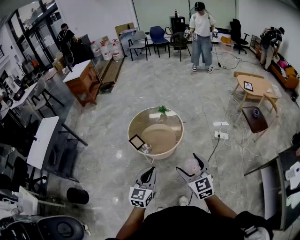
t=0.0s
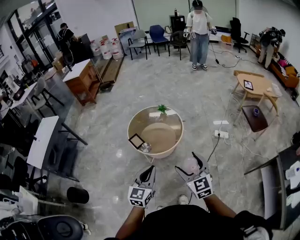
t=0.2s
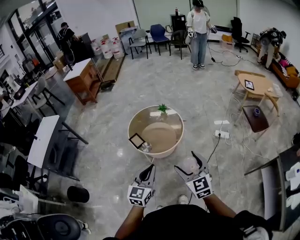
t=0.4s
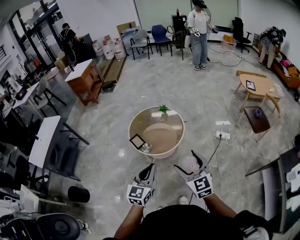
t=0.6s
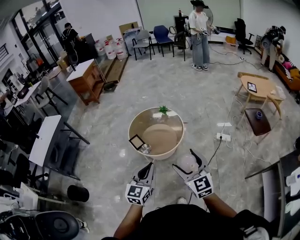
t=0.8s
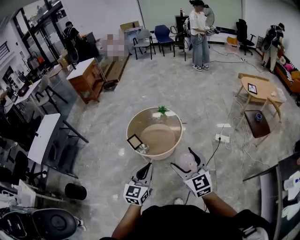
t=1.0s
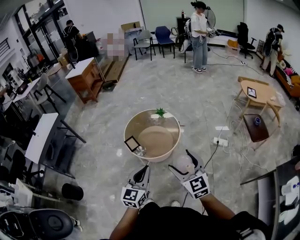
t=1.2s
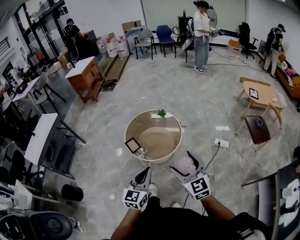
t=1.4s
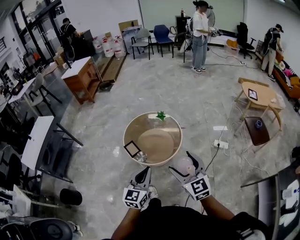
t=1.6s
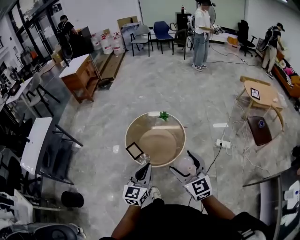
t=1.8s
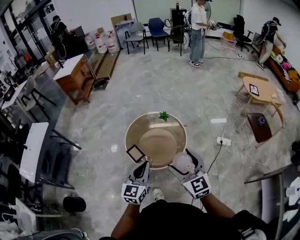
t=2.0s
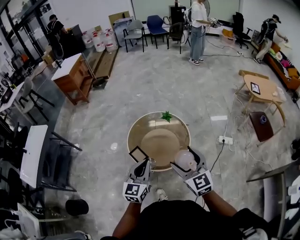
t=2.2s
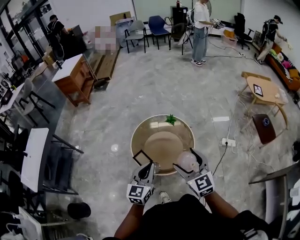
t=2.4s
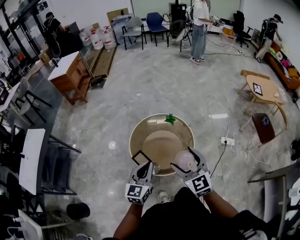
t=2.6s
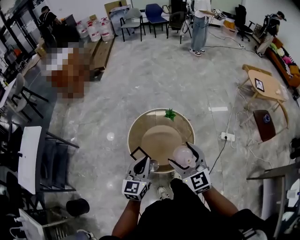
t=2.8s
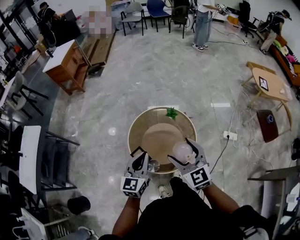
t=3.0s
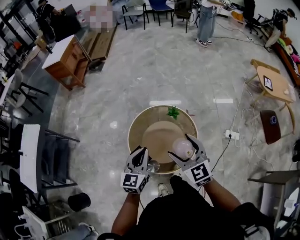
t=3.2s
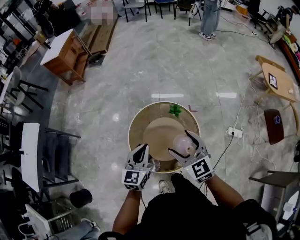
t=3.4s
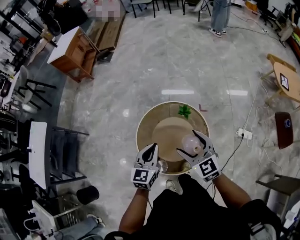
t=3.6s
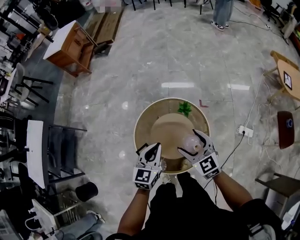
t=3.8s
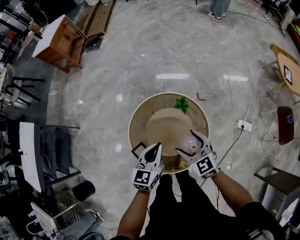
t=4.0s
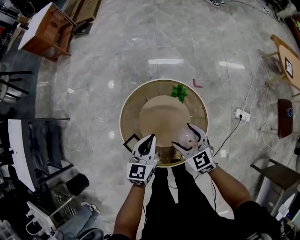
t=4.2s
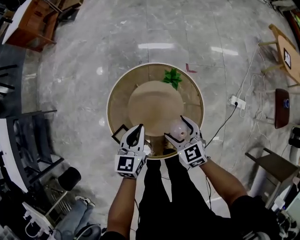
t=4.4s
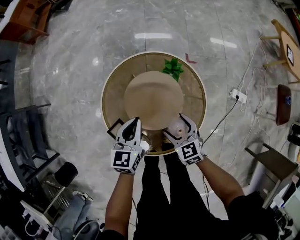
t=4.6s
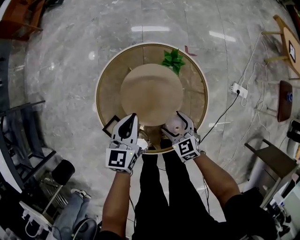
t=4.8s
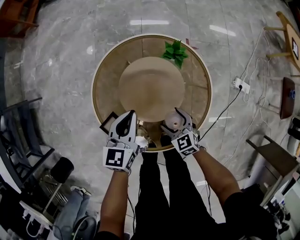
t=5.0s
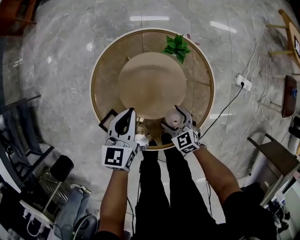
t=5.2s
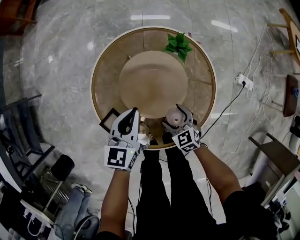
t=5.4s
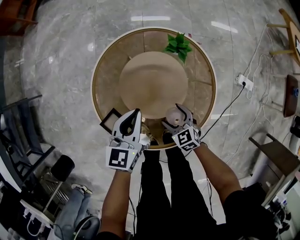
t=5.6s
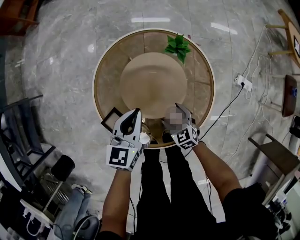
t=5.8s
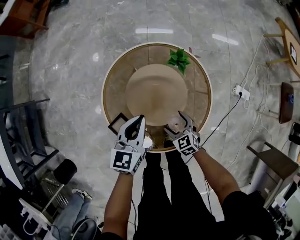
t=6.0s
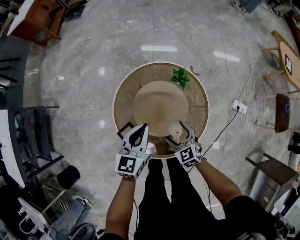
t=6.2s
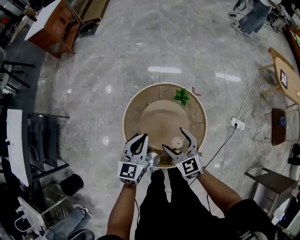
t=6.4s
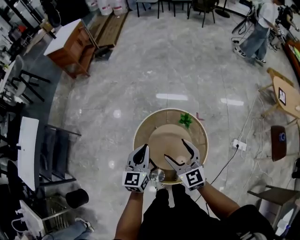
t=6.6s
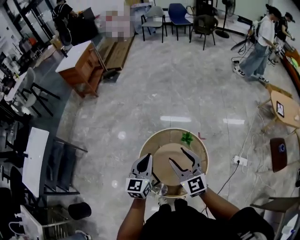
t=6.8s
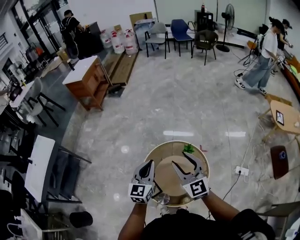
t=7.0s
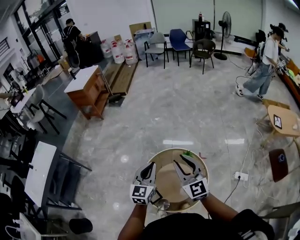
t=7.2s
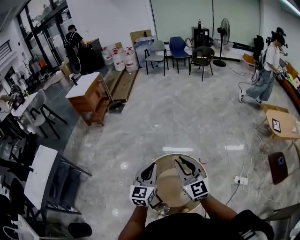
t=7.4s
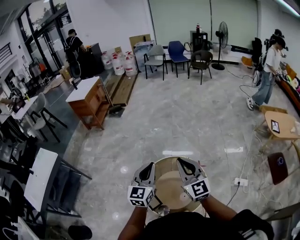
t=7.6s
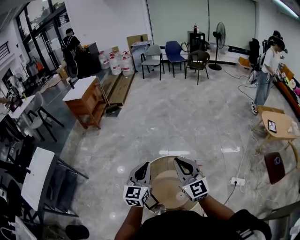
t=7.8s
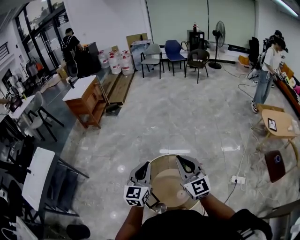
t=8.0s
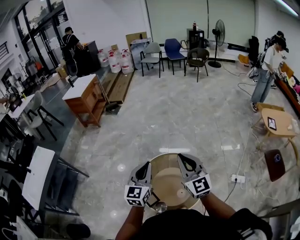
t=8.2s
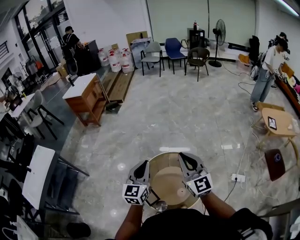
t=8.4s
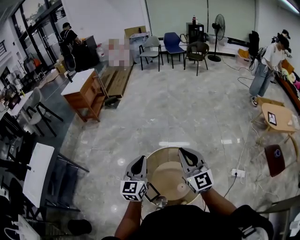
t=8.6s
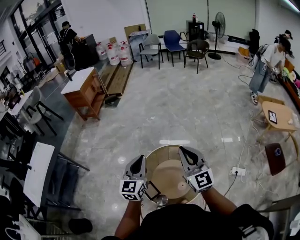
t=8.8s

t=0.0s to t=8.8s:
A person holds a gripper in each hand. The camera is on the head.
t=0.0s to t=1.4s: Both grippers travel together forward, some 5 cm.
t=1.4s to t=3.0s: The two grippers go about 35 cm forward and to the left.
t=3.0s to t=4.4s: The grippers both shift downward and forward by about 35 cm. The right gripper changes its angle by approximately 20 degrees.
t=4.4s to t=5.8s: The left gripper shifts approximately 10 cm downward; the right gripper moves downward, roughly 20 cm.
t=5.8s to t=7.4s: The left gripper shifts about 40 cm upward, and changes its angle by roughly 30 degrees. The right gripper goes about 70 cm upward, angles its fingers upward, by some 50 degrees, and closes its fingers.
t=7.4s to t=8.8s: There are only small adjustments of the grippers.

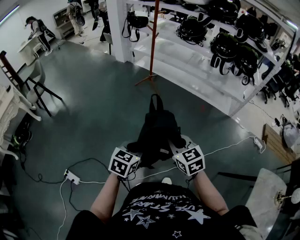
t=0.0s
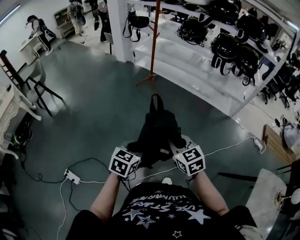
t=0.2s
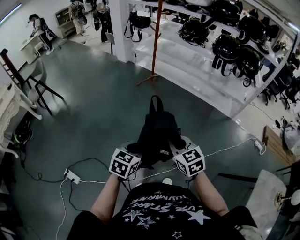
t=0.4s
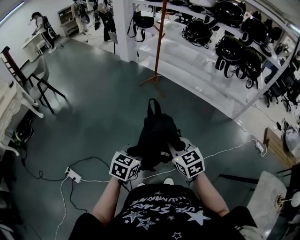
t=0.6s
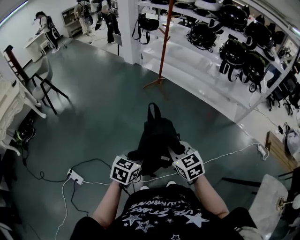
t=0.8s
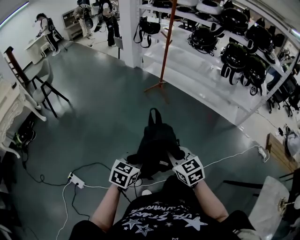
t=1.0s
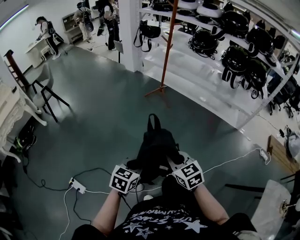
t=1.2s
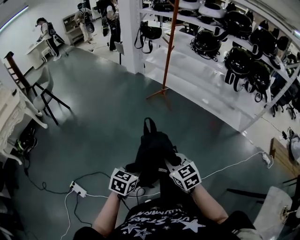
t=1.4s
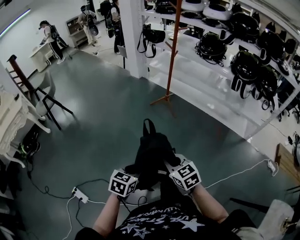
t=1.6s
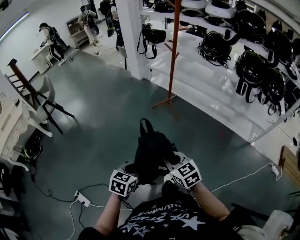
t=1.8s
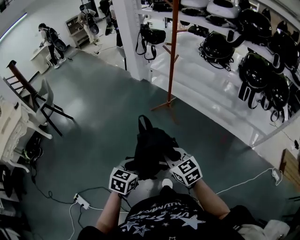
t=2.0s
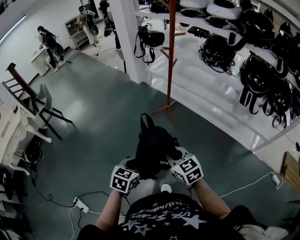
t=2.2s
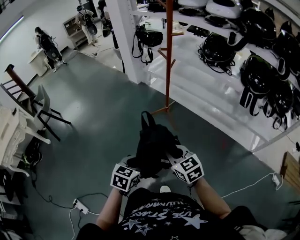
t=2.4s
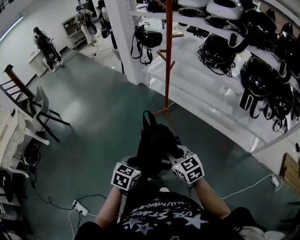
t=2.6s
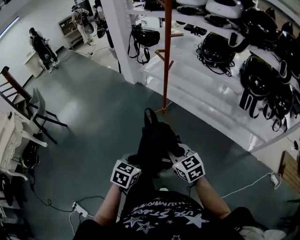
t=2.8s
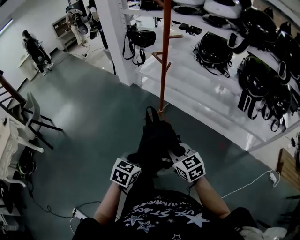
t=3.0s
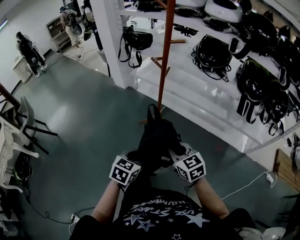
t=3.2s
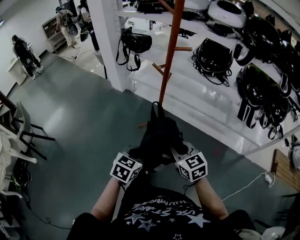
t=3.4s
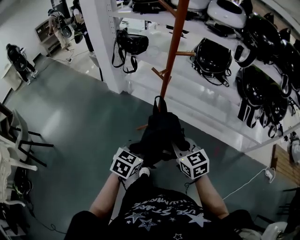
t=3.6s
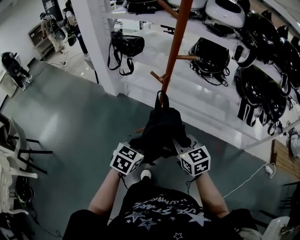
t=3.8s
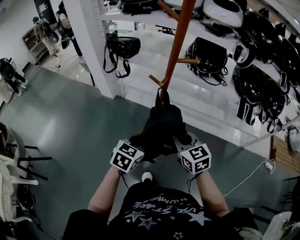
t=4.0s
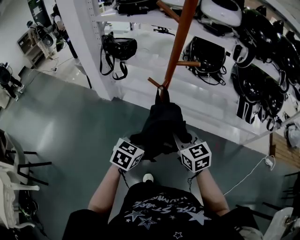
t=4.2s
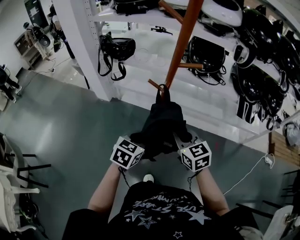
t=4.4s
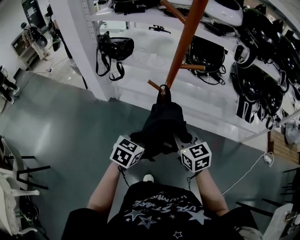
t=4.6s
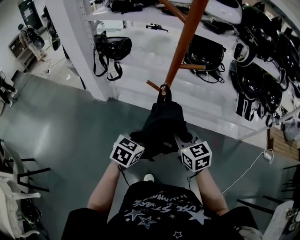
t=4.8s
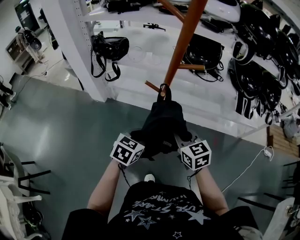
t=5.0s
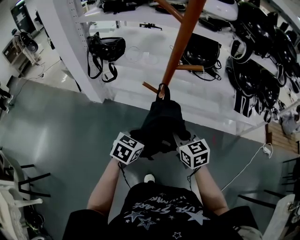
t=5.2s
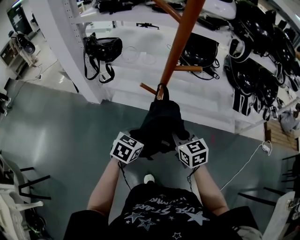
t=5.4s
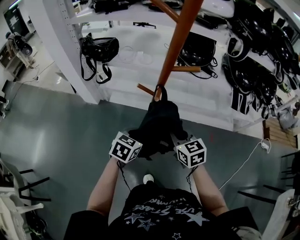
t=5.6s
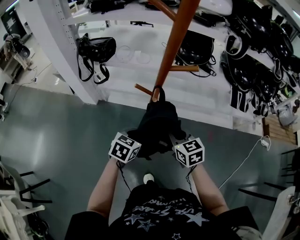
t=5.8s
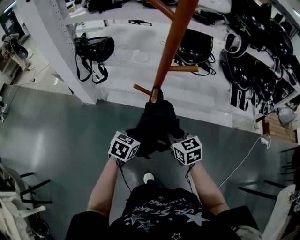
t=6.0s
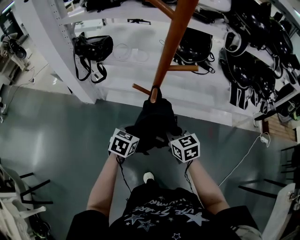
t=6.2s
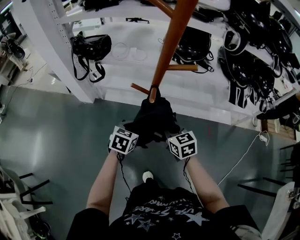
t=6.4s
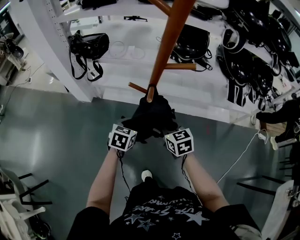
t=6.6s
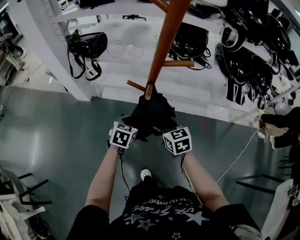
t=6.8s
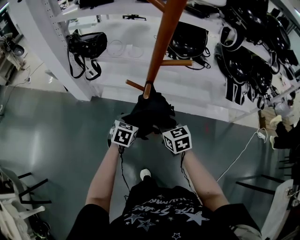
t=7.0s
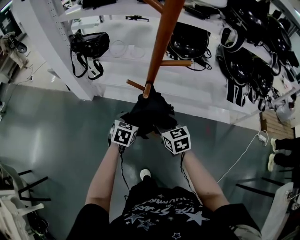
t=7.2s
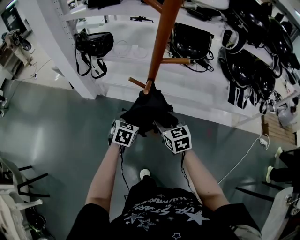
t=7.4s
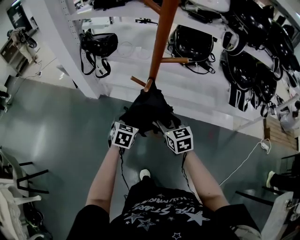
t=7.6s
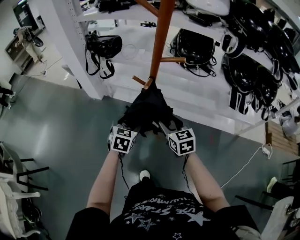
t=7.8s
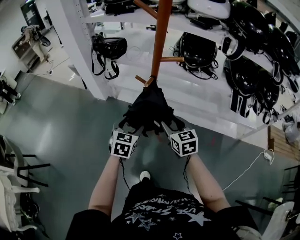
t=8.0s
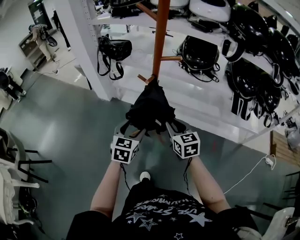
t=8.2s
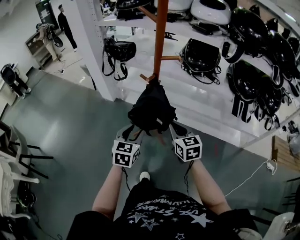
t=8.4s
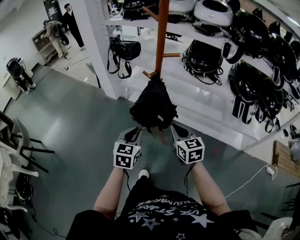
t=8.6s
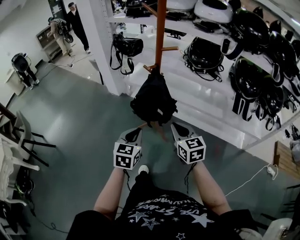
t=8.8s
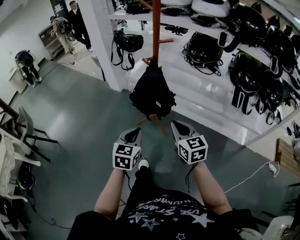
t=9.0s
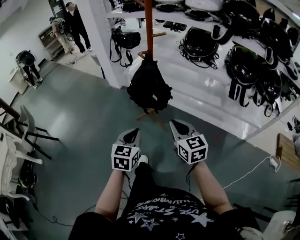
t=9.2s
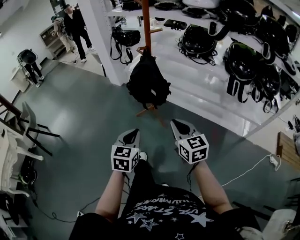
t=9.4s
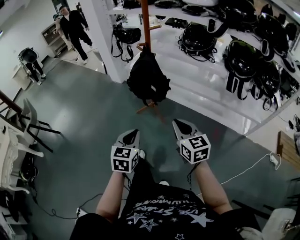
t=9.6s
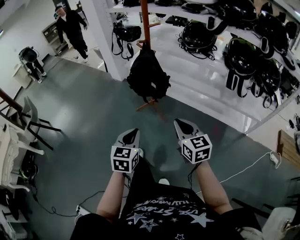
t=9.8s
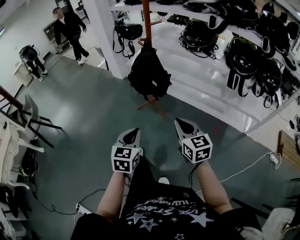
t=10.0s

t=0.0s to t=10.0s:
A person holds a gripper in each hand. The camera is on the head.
t=0.0s to t=1.4s: The right gripper goes approximately 15 cm to the left, forward and downward; the left gripper goes approximately 10 cm to the left and downward.
t=1.4s to t=2.8s: The two grippers travel together, forward, roughly 50 cm.
t=2.8s to t=4.2s: The two grippers go approximately 35 cm forward. The right gripper rotates approximately 20 degrees; the left gripper swivels approximately 20 degrees.
t=4.2s to t=5.8s: The grippers both shift forward and downward by roughly 10 cm.
t=5.8s to t=7.2s: The right gripper opens up; the left gripper travels forward by some 5 cm, and opens up.
t=7.2s to t=8.6s: Both grippers travel together backward and upward, approximately 25 cm. The right gripper closes up. Meanwhile the left gripper swivels roughly 30 degrees, and closes its fingers.
t=8.6s to t=10.0s: The two grippers go about 25 cm backward.

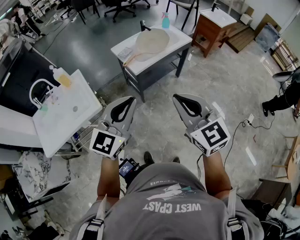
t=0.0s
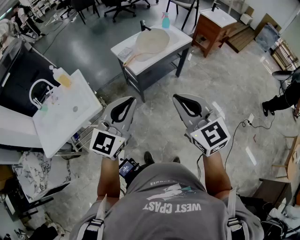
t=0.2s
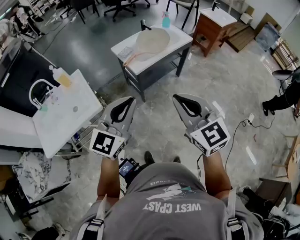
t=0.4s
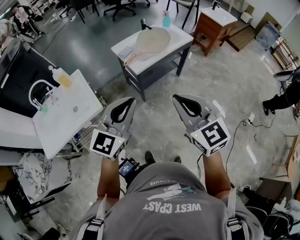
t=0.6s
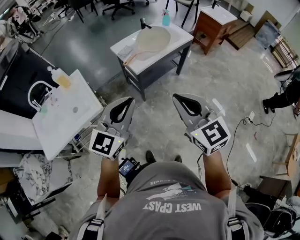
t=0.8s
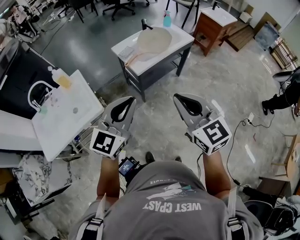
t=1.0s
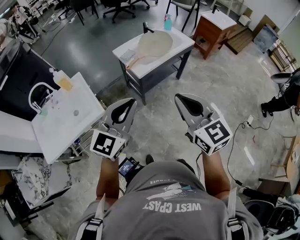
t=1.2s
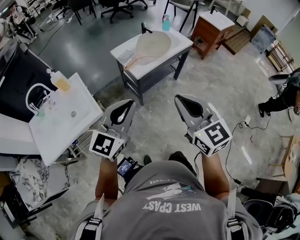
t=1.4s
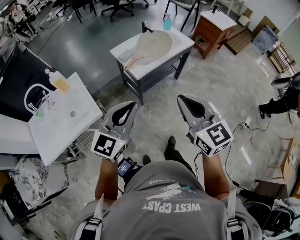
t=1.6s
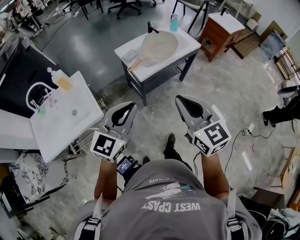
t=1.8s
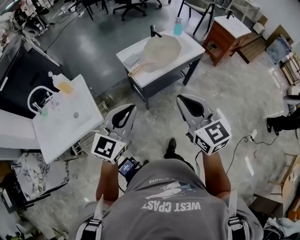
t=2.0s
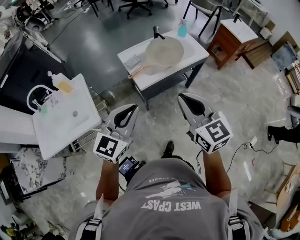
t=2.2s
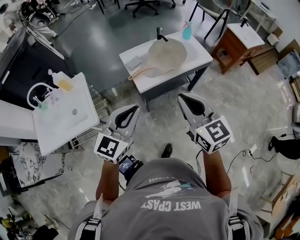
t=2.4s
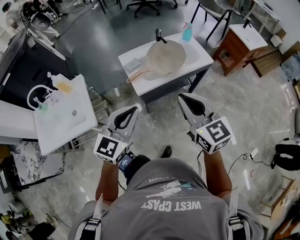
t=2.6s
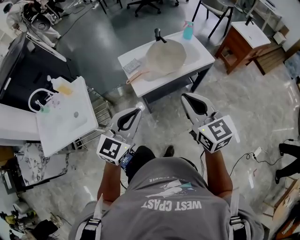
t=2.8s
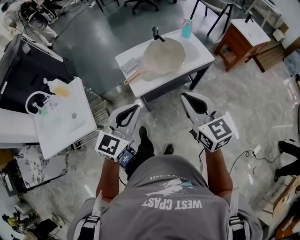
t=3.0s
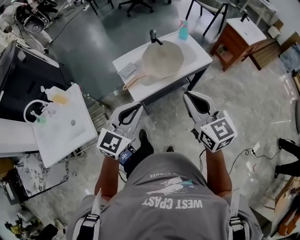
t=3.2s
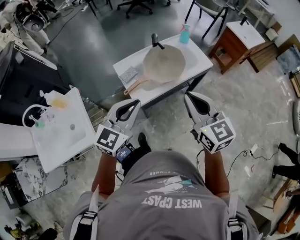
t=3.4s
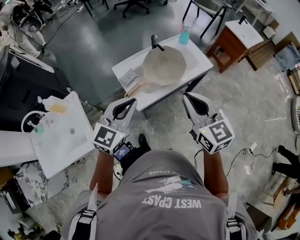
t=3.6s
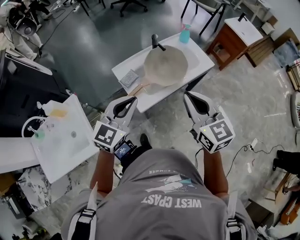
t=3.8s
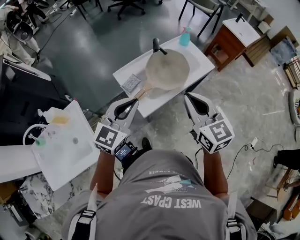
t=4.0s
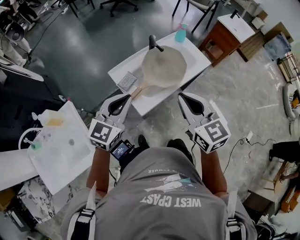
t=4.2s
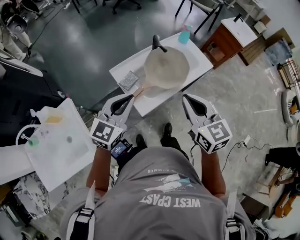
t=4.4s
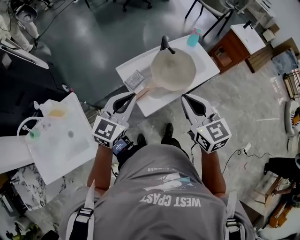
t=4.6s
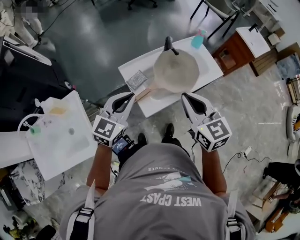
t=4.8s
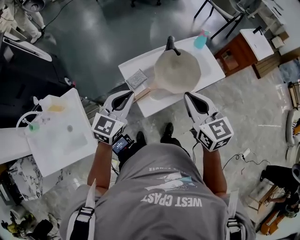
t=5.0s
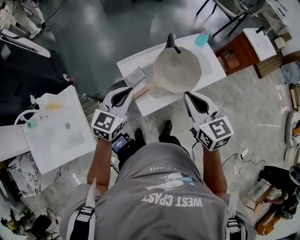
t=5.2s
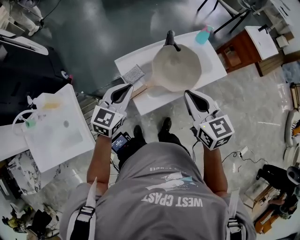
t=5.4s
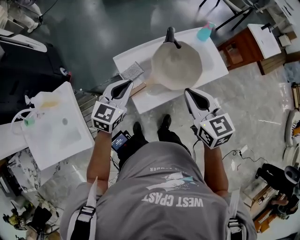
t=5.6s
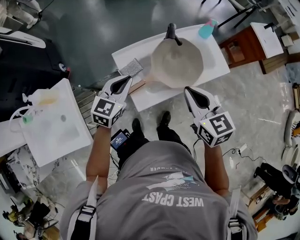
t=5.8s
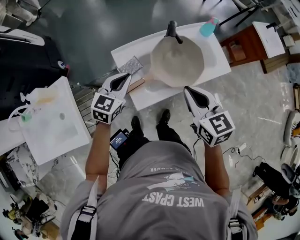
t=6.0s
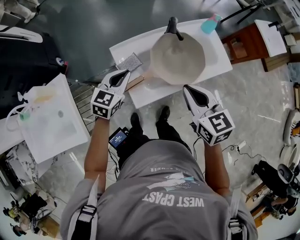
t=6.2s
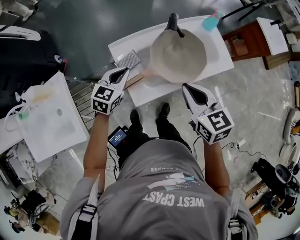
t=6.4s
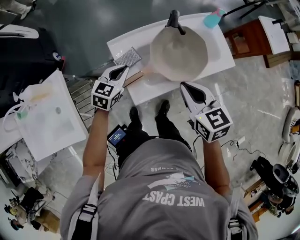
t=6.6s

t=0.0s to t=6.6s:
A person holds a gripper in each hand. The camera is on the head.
t=0.0s to t=1.6s: The two grippers go roughly 5 cm forward.
t=1.6s to t=3.2s: Both grippers move forward and to the right, some 30 cm.
t=3.2s to t=5.0s: The two grippers go some 25 cm forward and to the left.
t=5.0s to t=6.6s: The left gripper shifts some 20 cm downward and forward; the right gripper goes approximately 15 cm downward and forward.
